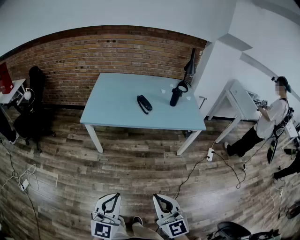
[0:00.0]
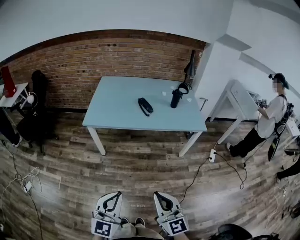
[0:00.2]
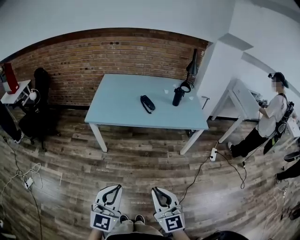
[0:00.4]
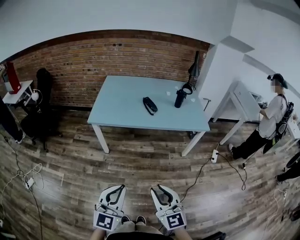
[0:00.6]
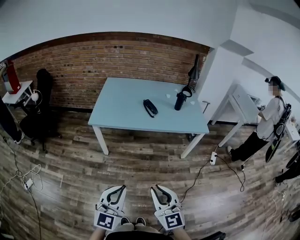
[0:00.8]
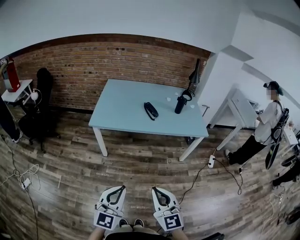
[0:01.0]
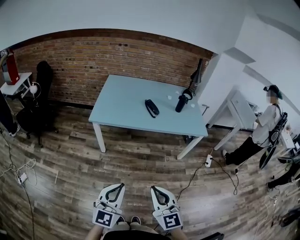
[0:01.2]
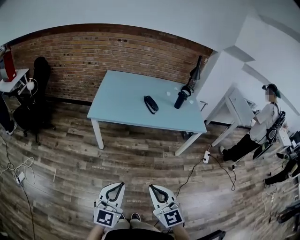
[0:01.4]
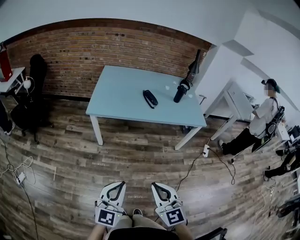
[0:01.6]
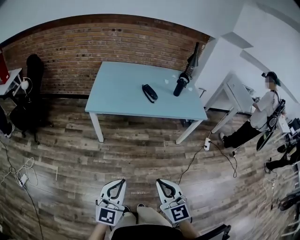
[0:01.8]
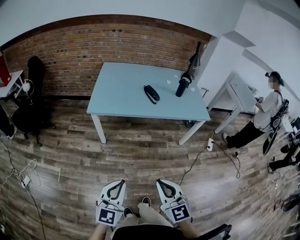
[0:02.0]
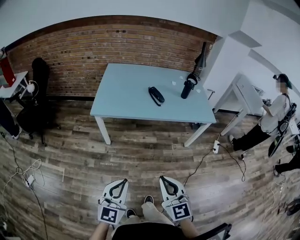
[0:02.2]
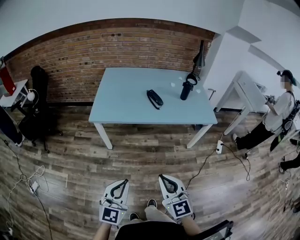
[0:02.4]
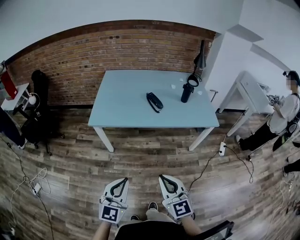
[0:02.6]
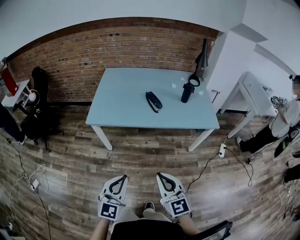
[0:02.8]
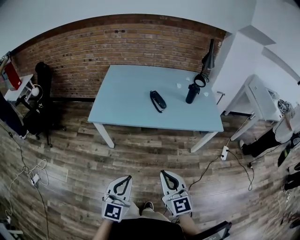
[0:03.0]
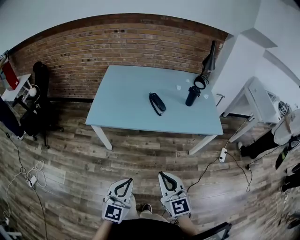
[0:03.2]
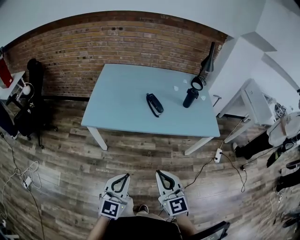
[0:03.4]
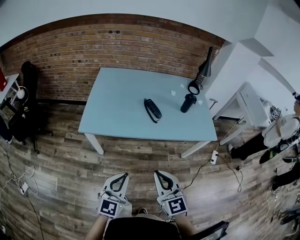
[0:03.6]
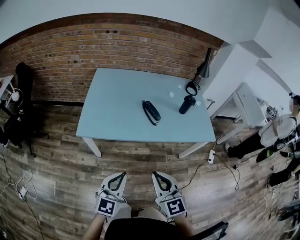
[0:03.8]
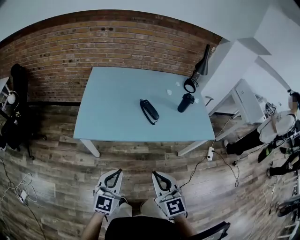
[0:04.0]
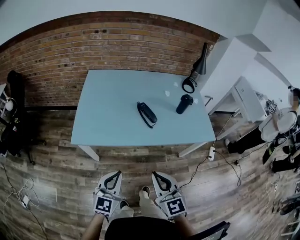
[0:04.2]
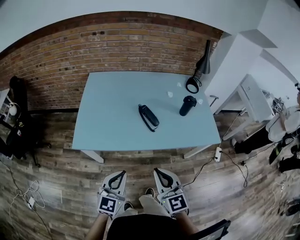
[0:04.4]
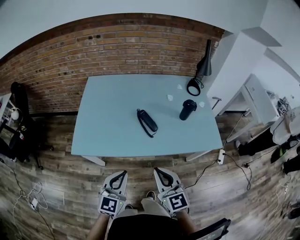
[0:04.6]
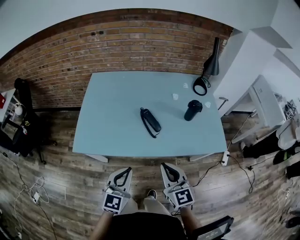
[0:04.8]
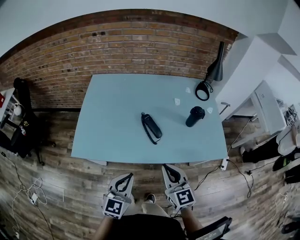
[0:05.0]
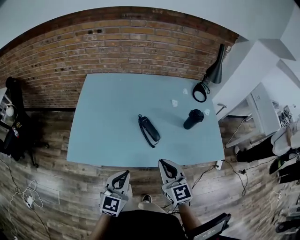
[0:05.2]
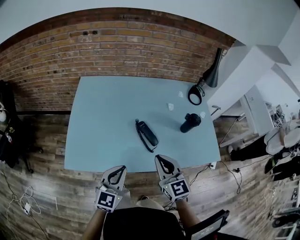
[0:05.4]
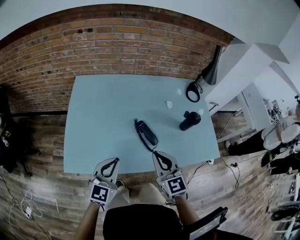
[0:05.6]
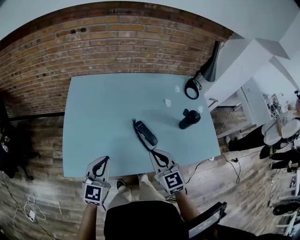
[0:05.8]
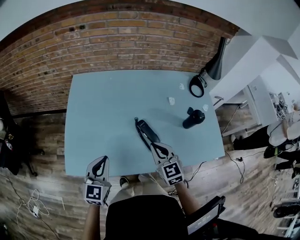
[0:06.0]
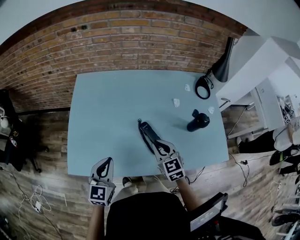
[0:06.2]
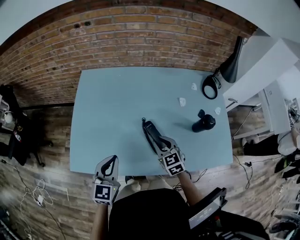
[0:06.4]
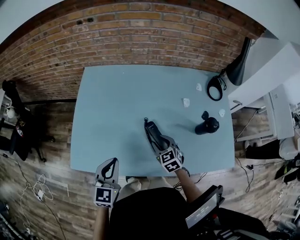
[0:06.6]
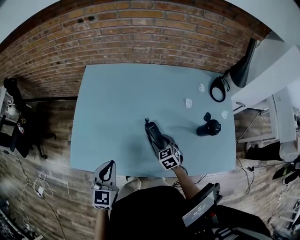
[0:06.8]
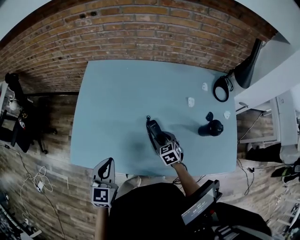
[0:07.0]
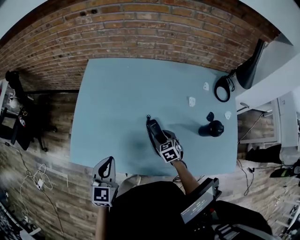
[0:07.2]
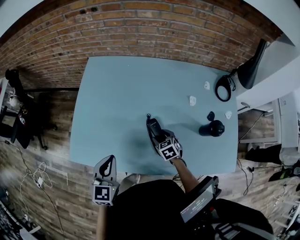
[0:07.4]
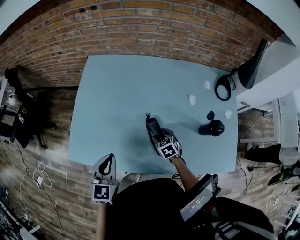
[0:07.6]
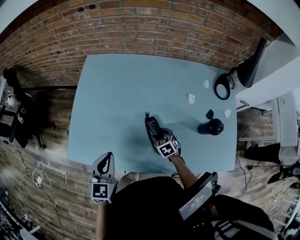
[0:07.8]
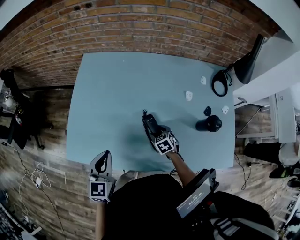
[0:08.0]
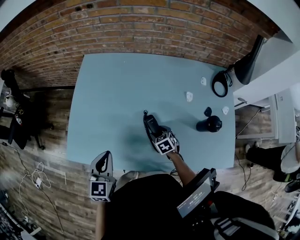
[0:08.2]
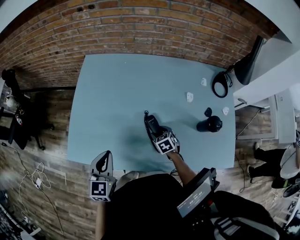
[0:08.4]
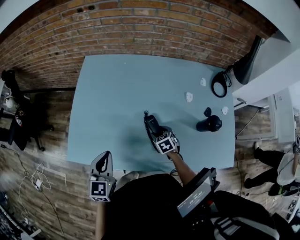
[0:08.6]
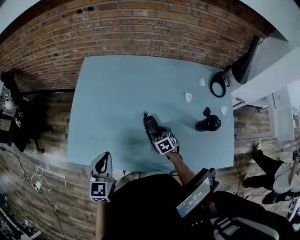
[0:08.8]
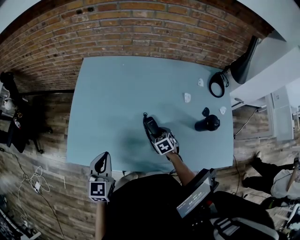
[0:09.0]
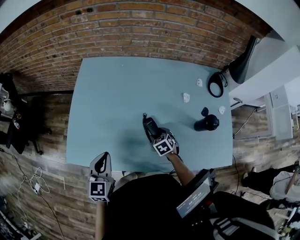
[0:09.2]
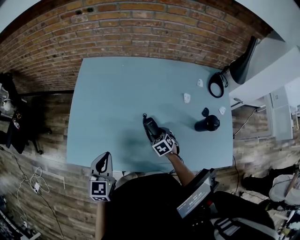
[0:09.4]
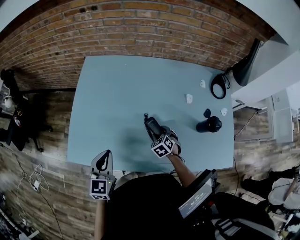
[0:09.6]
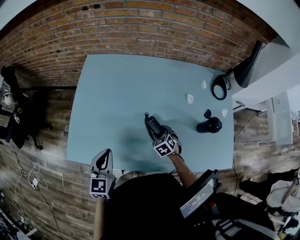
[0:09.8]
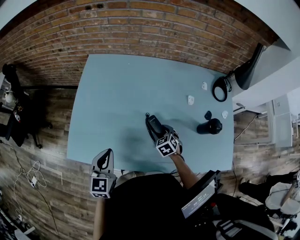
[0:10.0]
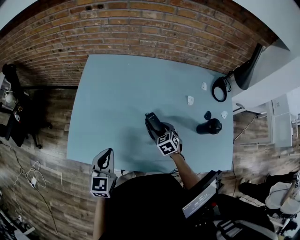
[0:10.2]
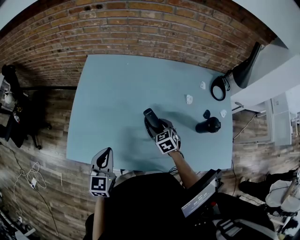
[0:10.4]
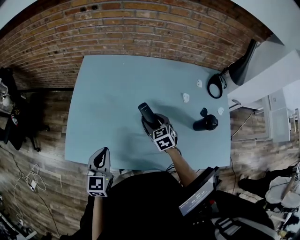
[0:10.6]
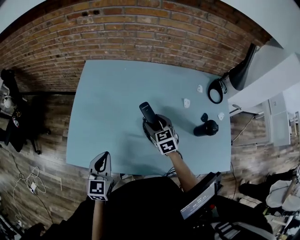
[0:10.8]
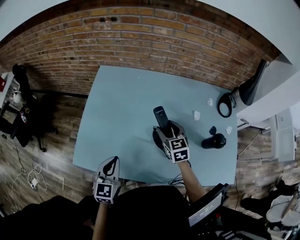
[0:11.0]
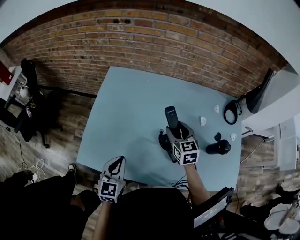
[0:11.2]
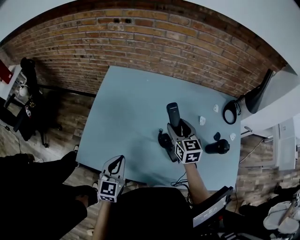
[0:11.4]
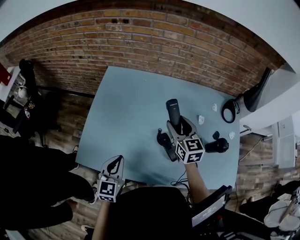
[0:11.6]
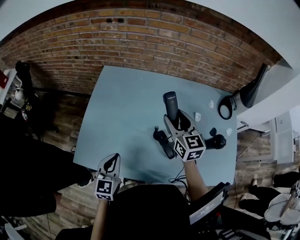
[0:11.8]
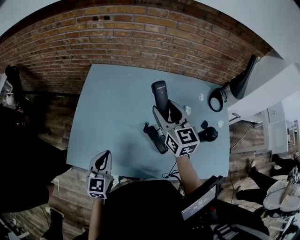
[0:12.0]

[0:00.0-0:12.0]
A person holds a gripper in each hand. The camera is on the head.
0:00.0 to 0:01.6: The right gripper goes some 10 cm to the left. The left gripper goes some 10 cm to the left and downward.
0:01.6 to 0:03.0: The grippers both shift forward and to the right by approximately 20 cm.
0:03.0 to 0:04.4: Both grippers travel together forward, some 25 cm.
0:04.4 to 0:06.0: Both grippers move forward, roughly 30 cm.
0:06.0 to 0:07.6: The left gripper ends up about 5 cm from where it was, while the right gripper travels downward and forward by approximately 25 cm, tilts its fingers some 30 degrees downward, and opens its fingers.
0:07.6 to 0:09.0: The grippers move only a little.
0:09.0 to 0:10.4: The right gripper heads upward, covering approximately 10 cm.
0:10.4 to 0:12.0: The right gripper goes roughly 25 cm upward, and tilts its fingers roughly 40 degrees upward.

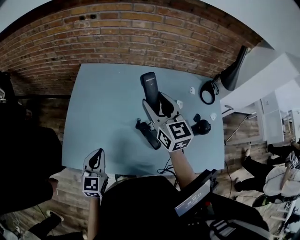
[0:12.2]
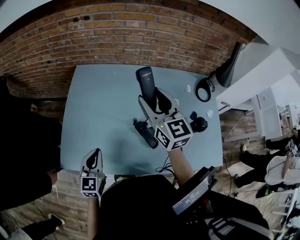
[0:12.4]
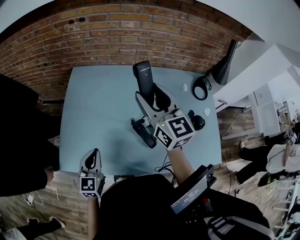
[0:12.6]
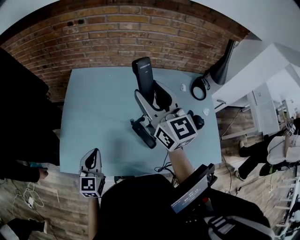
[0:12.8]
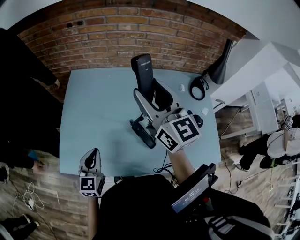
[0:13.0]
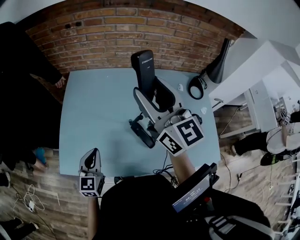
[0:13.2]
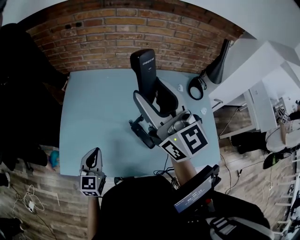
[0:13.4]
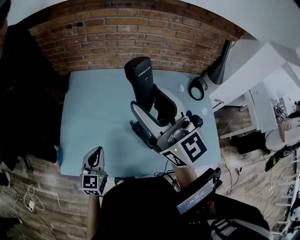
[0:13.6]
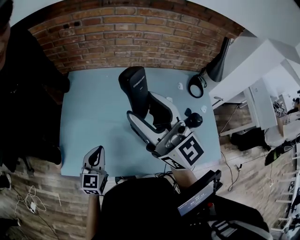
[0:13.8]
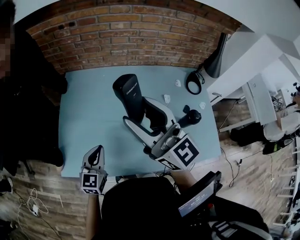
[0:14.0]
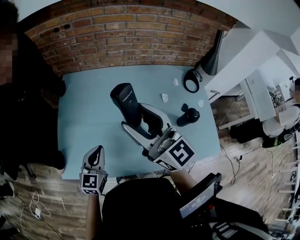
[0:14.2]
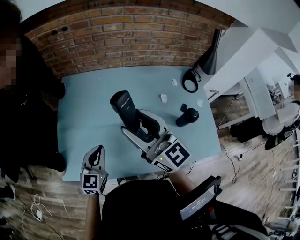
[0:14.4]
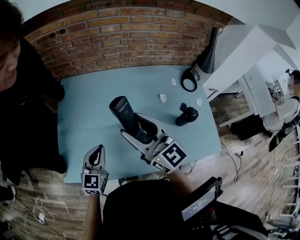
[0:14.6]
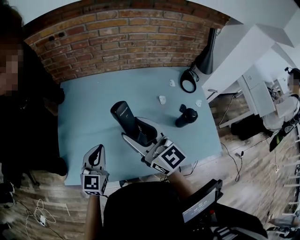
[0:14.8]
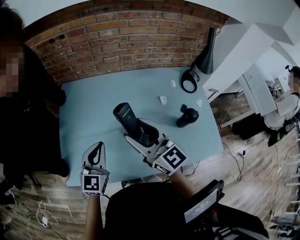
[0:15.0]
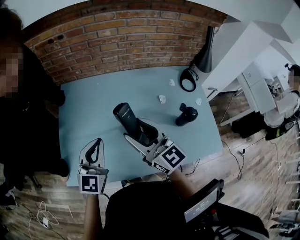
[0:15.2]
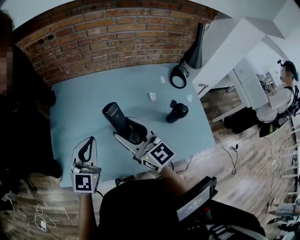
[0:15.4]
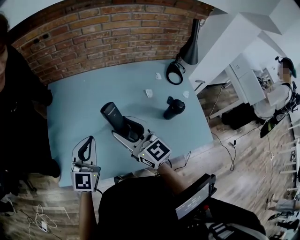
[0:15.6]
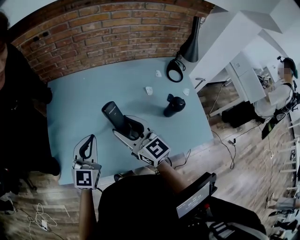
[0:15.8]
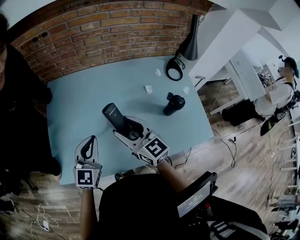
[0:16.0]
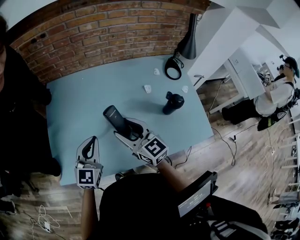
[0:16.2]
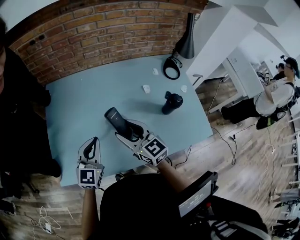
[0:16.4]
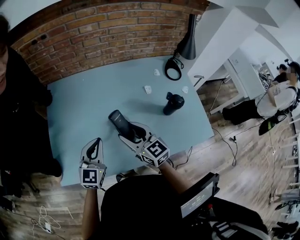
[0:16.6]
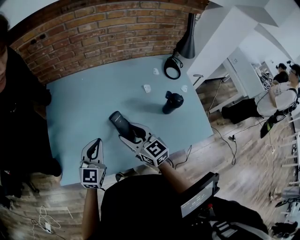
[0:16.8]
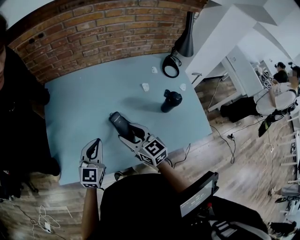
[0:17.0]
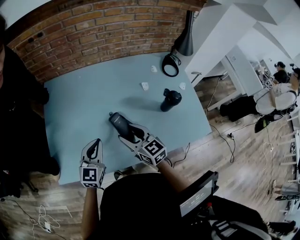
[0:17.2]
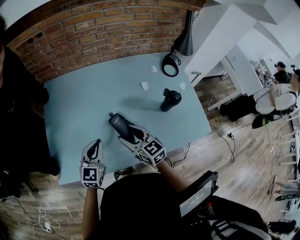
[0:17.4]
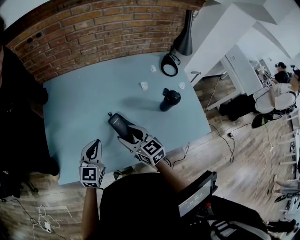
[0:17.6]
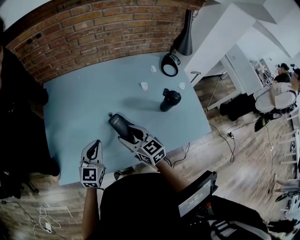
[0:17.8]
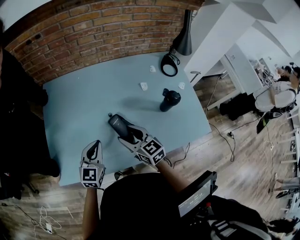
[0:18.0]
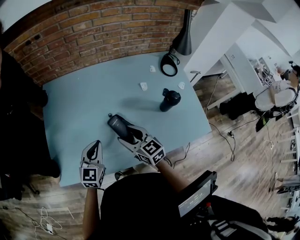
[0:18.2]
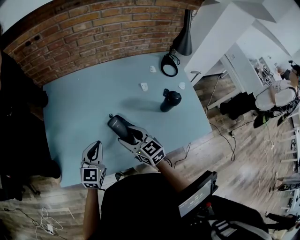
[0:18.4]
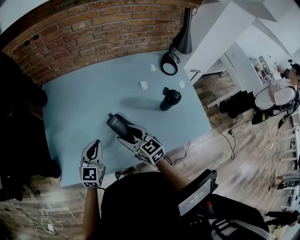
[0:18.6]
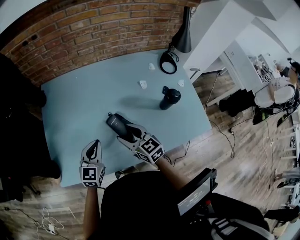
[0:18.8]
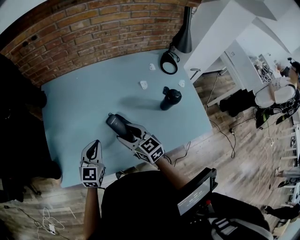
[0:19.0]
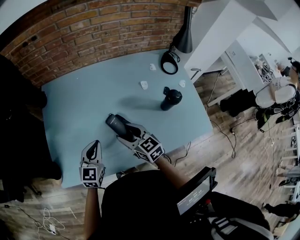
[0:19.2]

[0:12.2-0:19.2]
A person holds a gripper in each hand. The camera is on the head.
0:12.2 to 0:13.6: The right gripper shifts some 20 cm upward and backward, and changes its angle by about 30 degrees.
0:13.6 to 0:15.0: The right gripper goes roughly 15 cm downward; the left gripper goes about 5 cm upward.
0:15.0 to 0:16.4: The right gripper heads downward, covering roughly 10 cm. The left gripper changes place by some 5 cm.
0:16.4 to 0:17.8: The right gripper is displaced downward by roughly 5 cm. The left gripper ends up some 5 cm from where it was.
0:17.8 to 0:19.2: The grippers make only small movements.

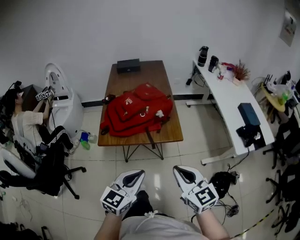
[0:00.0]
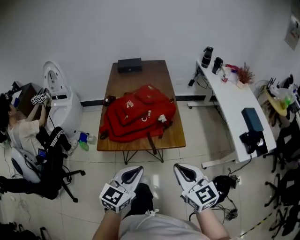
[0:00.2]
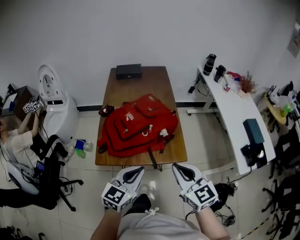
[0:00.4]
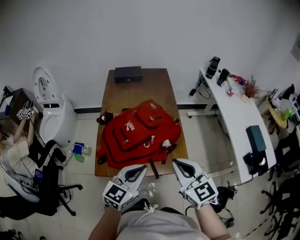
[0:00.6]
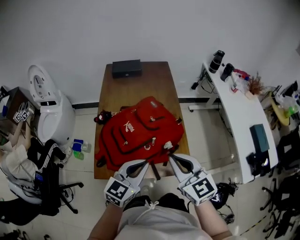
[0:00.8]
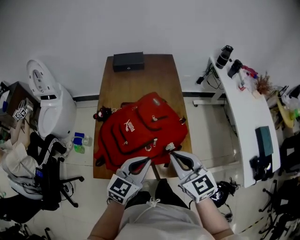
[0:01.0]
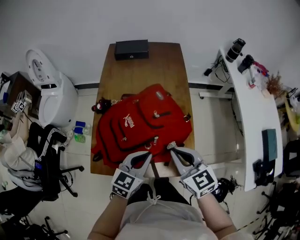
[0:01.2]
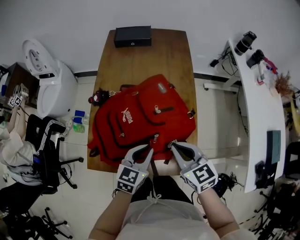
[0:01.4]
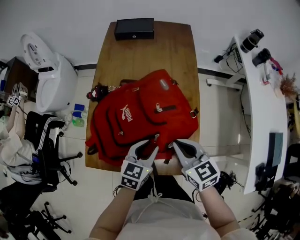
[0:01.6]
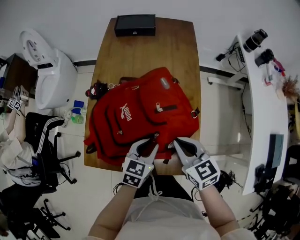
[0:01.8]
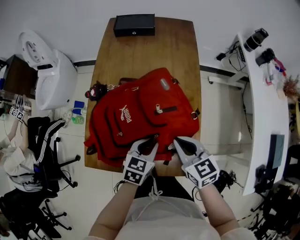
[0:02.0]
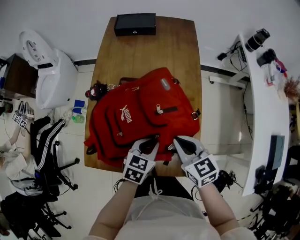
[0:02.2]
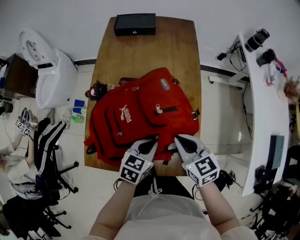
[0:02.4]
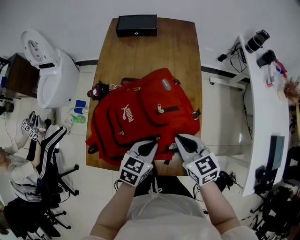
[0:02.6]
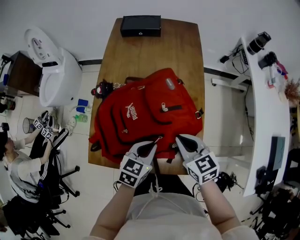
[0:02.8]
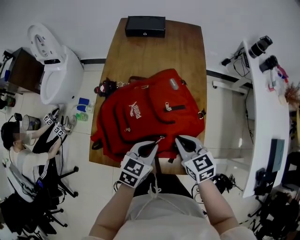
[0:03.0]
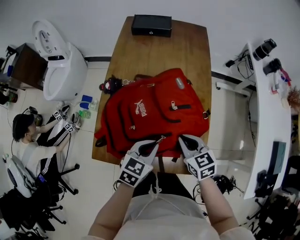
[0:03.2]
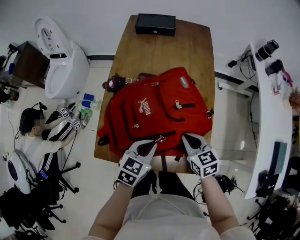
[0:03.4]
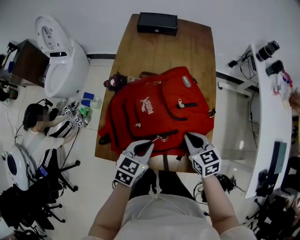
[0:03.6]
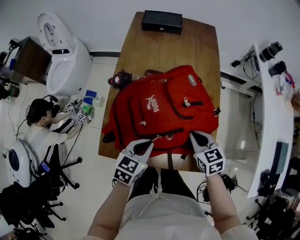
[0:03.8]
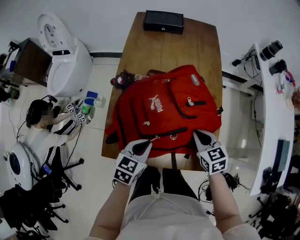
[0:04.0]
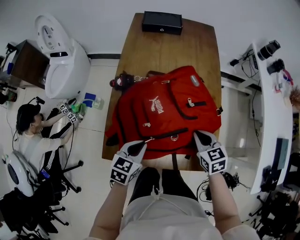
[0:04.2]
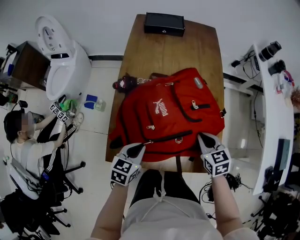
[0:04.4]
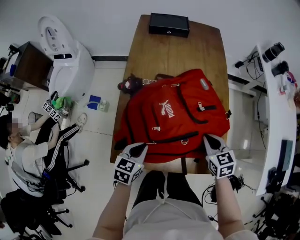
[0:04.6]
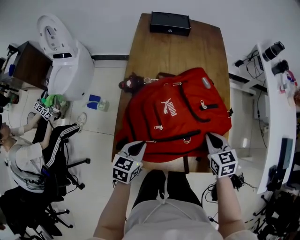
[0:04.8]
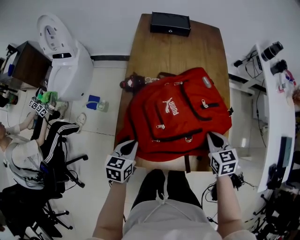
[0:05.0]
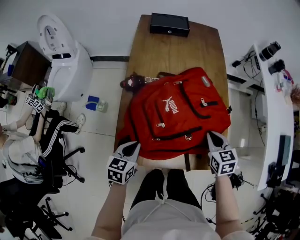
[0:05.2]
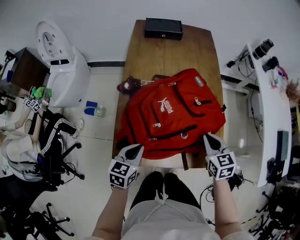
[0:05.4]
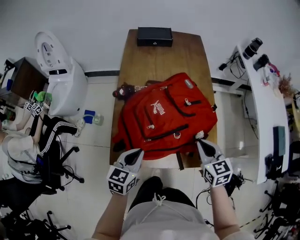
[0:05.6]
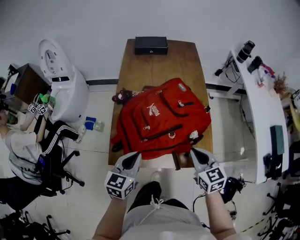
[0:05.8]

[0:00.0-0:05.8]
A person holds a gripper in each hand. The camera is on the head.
0:00.0 to 0:01.4: Both grippers travel together forward, roughly 40 cm.
0:01.4 to 0:02.8: The left gripper opens, then closes again. The right gripper moves about 5 cm.
0:02.8 to 0:04.4: The left gripper moves to the left, roughly 15 cm. Meanwhile the right gripper shifts about 5 cm downward.
0:04.4 to 0:05.8: The left gripper goes about 10 cm upward and backward. Meanwhile the right gripper goes some 15 cm backward and upward.
